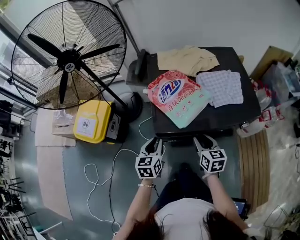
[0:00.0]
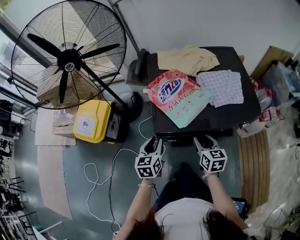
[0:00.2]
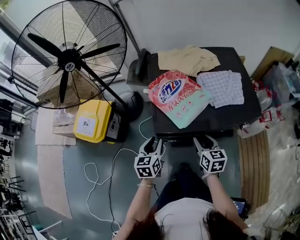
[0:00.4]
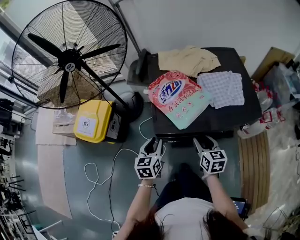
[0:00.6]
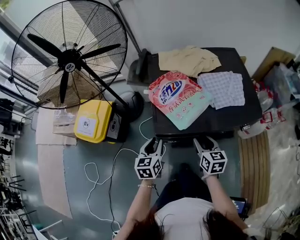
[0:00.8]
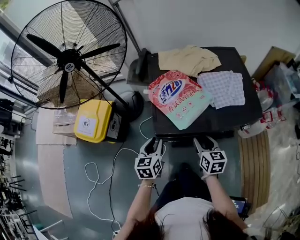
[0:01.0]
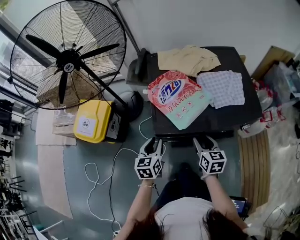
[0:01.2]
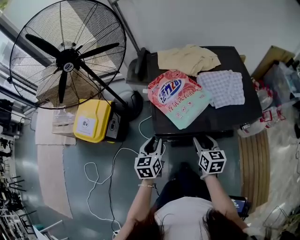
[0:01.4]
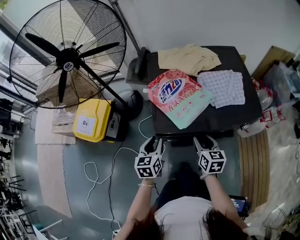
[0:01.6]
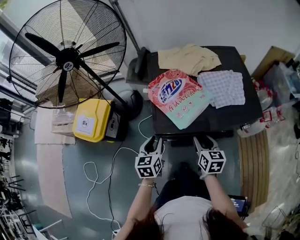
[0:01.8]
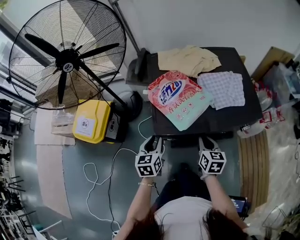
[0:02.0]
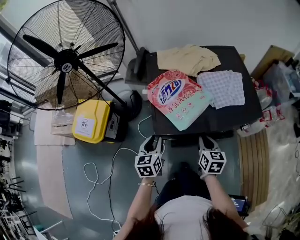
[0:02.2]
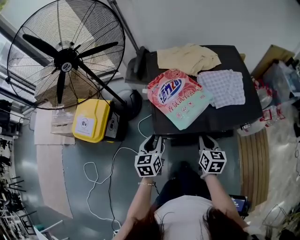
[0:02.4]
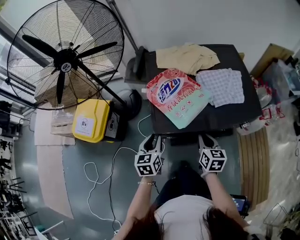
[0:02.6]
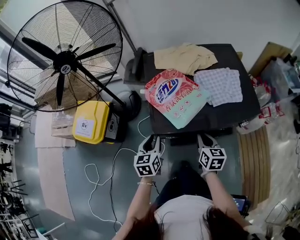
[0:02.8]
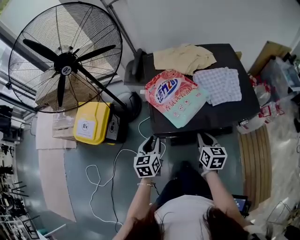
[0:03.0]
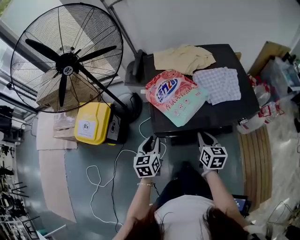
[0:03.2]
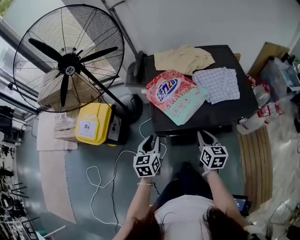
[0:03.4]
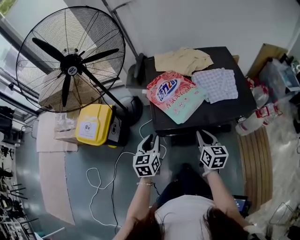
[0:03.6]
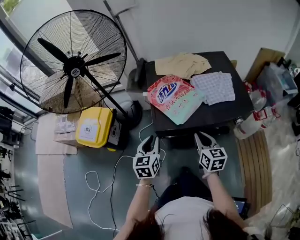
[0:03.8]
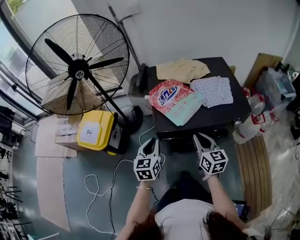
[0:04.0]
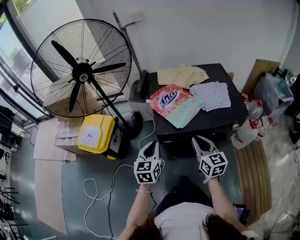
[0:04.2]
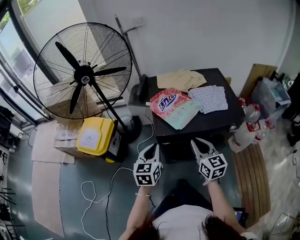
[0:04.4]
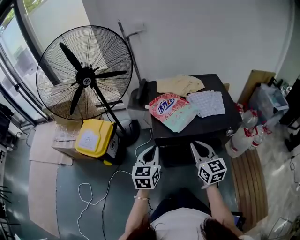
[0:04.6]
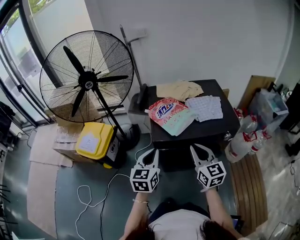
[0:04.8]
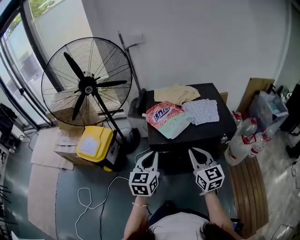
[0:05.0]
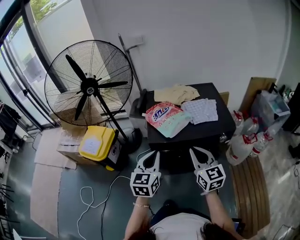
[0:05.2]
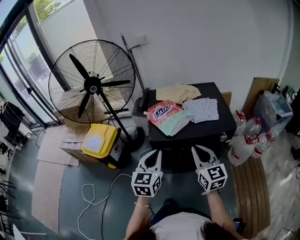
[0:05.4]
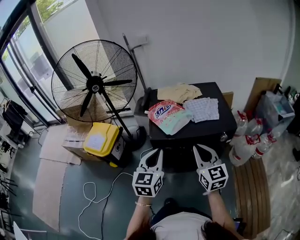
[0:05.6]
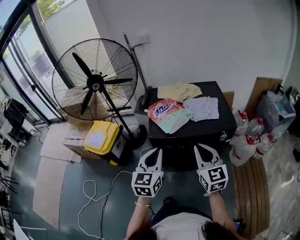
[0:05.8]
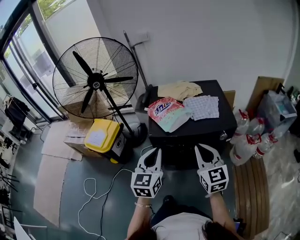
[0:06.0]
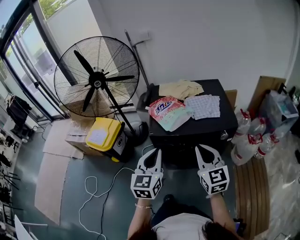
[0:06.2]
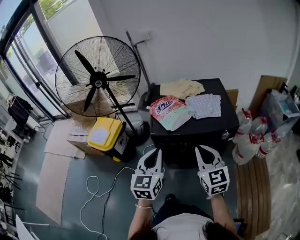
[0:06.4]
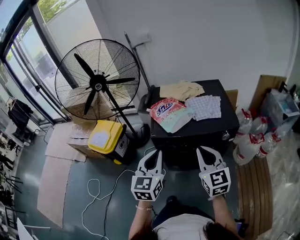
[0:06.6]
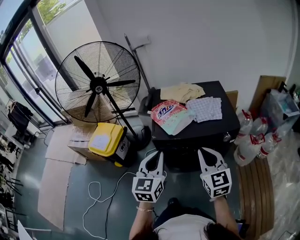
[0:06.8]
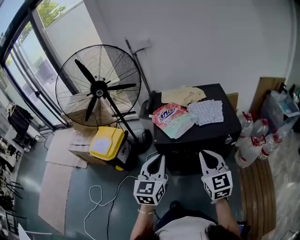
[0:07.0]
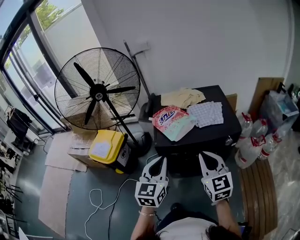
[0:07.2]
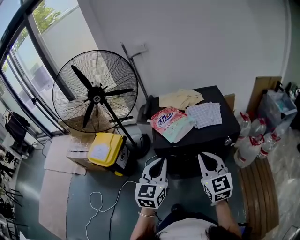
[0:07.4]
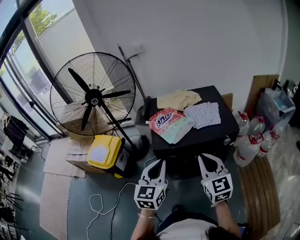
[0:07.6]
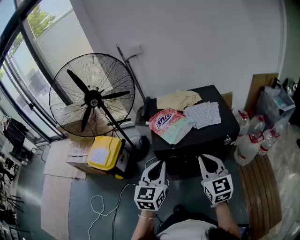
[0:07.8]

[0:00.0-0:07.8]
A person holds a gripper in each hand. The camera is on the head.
0.0 to 1.6 s: The two grippers keep their place.
1.6 to 3.2 s: The right gripper closes its fingers.
3.2 to 4.6 s: Both grippers travel together upward and backward, about 15 cm. The left gripper closes, while the right gripper rotates about 30 degrees.
4.6 to 6.2 s: The left gripper heads upward, backward and to the right, covering some 15 cm; the right gripper travels to the right, backward and upward by about 15 cm.
6.2 to 7.8 s: The grippers make only small movements.

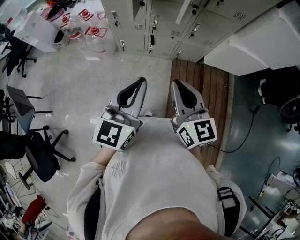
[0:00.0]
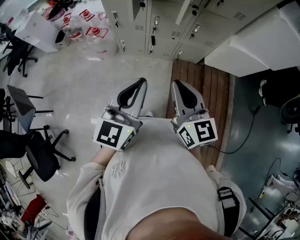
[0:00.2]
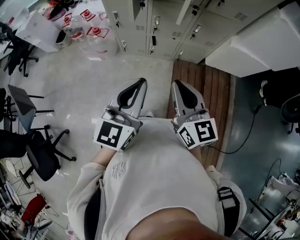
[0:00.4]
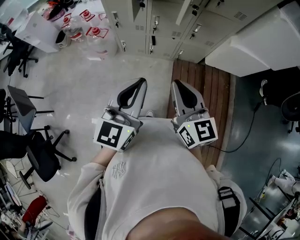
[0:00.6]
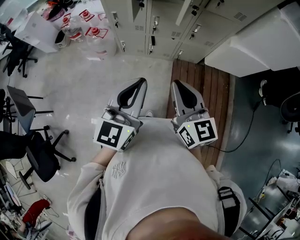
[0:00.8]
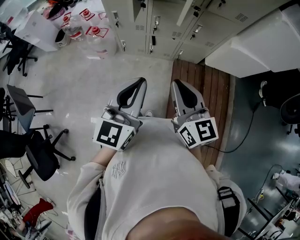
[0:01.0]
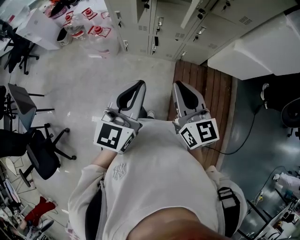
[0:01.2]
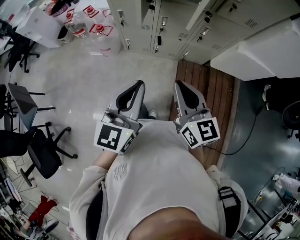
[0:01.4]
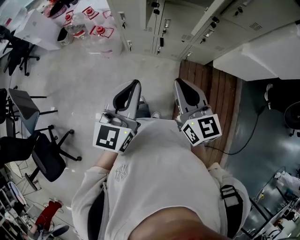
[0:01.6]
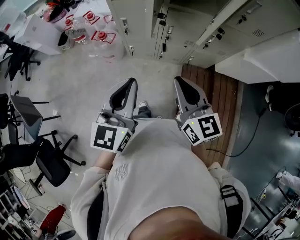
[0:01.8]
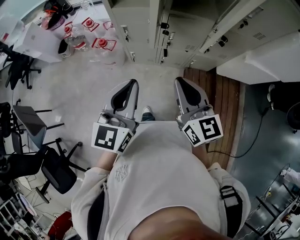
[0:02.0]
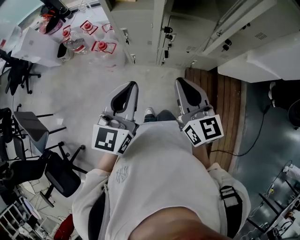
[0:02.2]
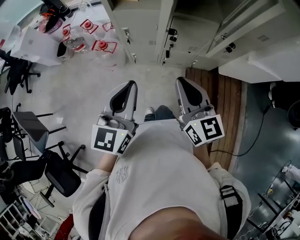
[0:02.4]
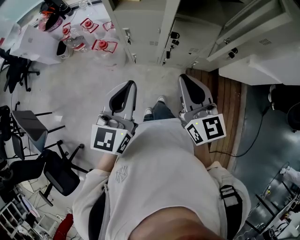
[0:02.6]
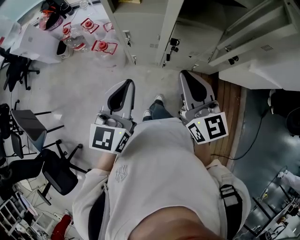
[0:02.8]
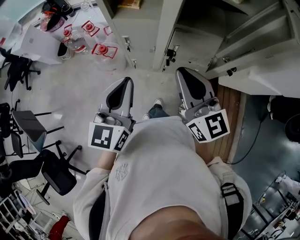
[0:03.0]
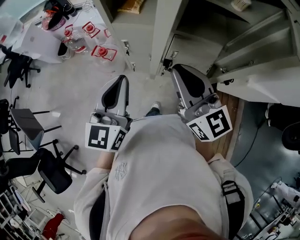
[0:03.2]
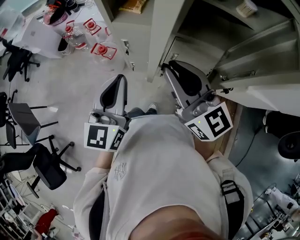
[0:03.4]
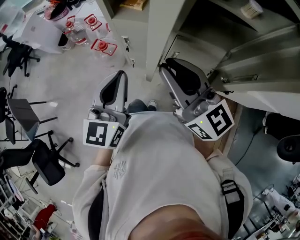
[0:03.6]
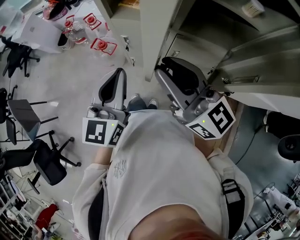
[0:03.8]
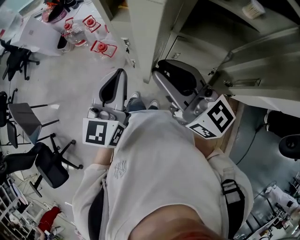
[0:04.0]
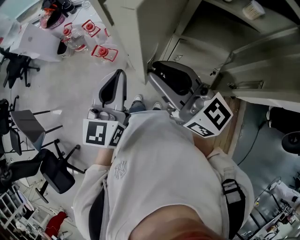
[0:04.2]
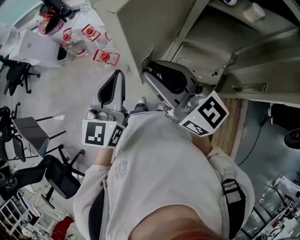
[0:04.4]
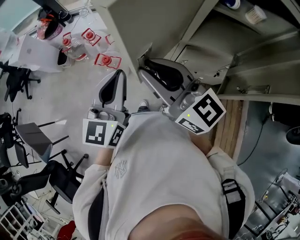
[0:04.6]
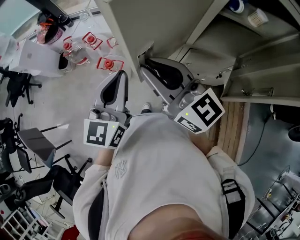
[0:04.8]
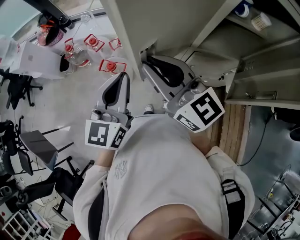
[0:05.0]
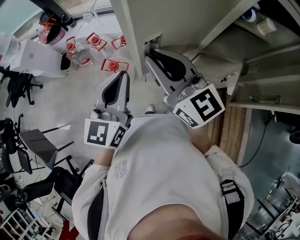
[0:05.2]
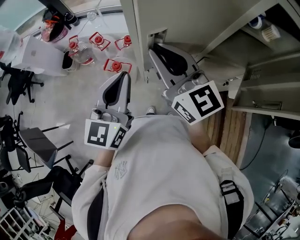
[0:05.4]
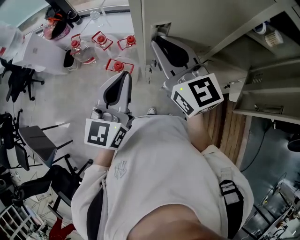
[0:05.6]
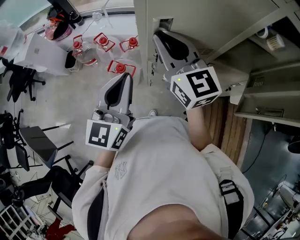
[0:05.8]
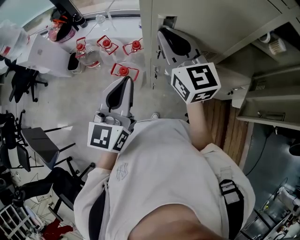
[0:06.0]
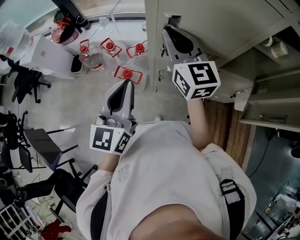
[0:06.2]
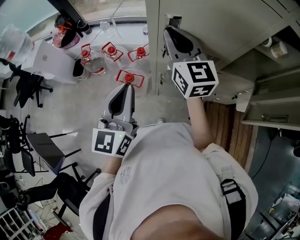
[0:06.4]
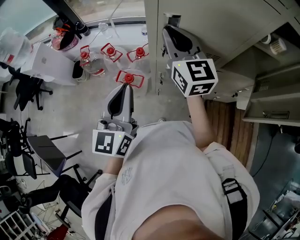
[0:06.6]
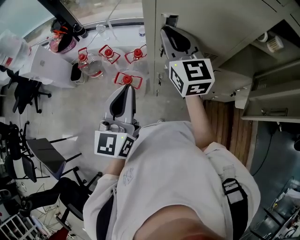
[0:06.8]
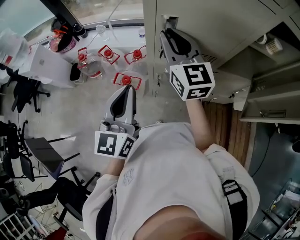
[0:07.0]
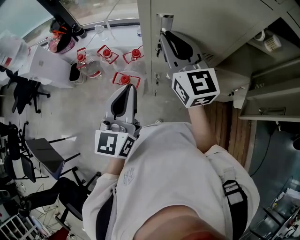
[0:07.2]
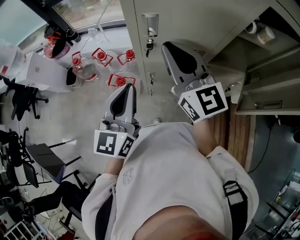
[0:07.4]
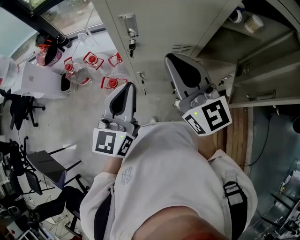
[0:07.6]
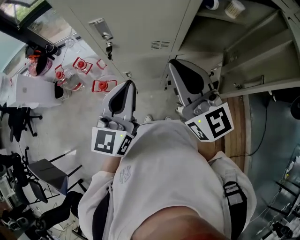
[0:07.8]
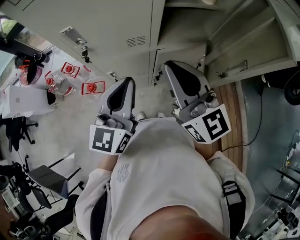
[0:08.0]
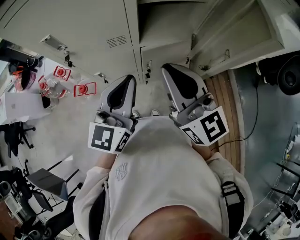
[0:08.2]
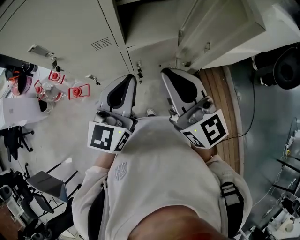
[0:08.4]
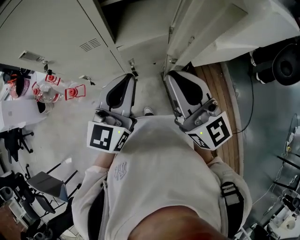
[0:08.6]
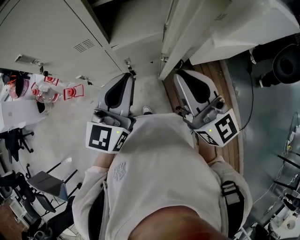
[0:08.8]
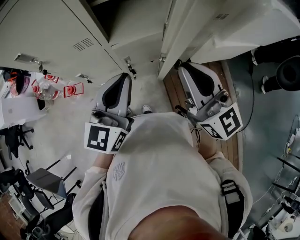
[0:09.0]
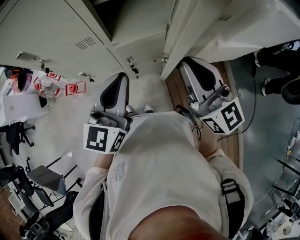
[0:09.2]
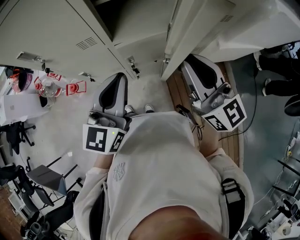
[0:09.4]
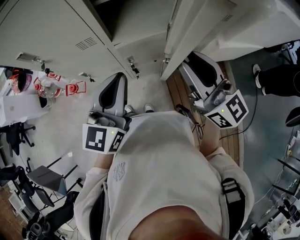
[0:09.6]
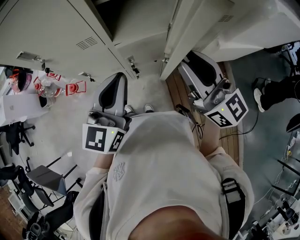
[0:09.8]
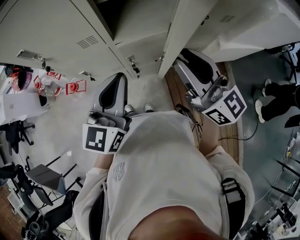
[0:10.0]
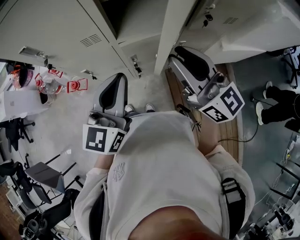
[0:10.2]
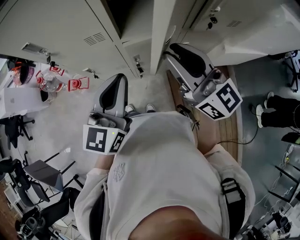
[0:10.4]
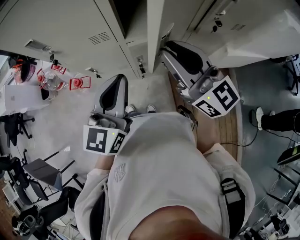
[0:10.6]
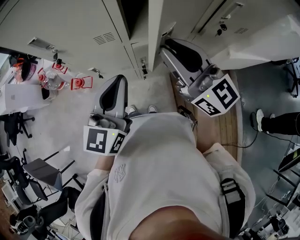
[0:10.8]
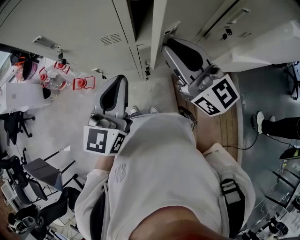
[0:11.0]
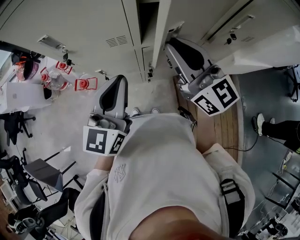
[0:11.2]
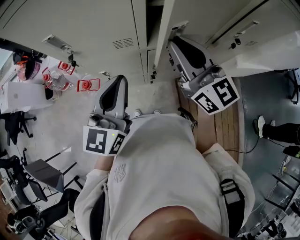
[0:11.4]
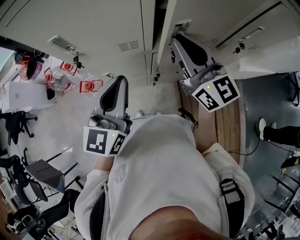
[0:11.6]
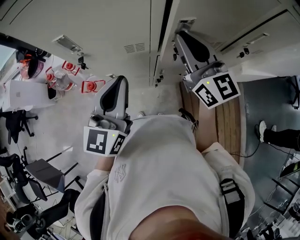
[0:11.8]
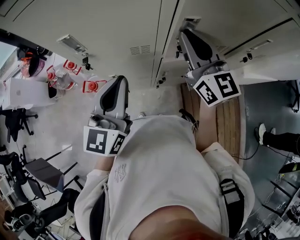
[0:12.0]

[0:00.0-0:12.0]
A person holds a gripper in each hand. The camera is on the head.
0.0 to 1.6 s: The left gripper goes roughly 10 cm forward and to the left. Meanwhile the right gripper travels forward by roughly 10 cm.
1.6 to 3.0 s: The two grippers go approximately 20 cm forward.
3.0 to 4.4 s: The right gripper is displaced forward and to the left by roughly 15 cm, and swivels about 20 degrees, while the left gripper is displaced forward by about 10 cm.
4.4 to 6.0 s: The left gripper goes approximately 15 cm to the left and forward; the right gripper shifts roughly 20 cm forward, and turns by roughly 30 degrees.
6.0 to 7.6 s: The right gripper shifts about 15 cm backward and to the right. Meanwhile the left gripper is displaced to the right by about 5 cm.
7.6 to 9.0 s: Both grippers move to the right, roughly 30 cm.
9.0 to 10.4 s: The right gripper travels forward and to the left by about 10 cm.
10.4 to 12.0 s: The left gripper shifts approximately 15 cm to the left and forward. The right gripper shifts roughly 20 cm forward and to the left.

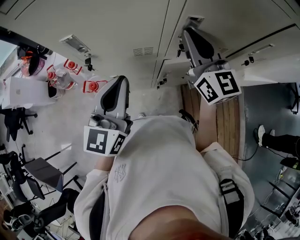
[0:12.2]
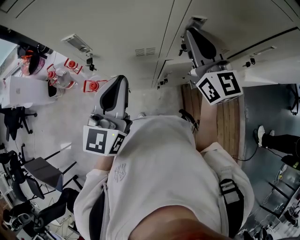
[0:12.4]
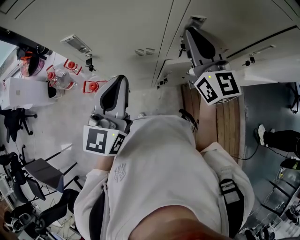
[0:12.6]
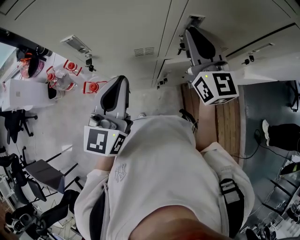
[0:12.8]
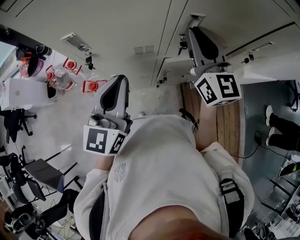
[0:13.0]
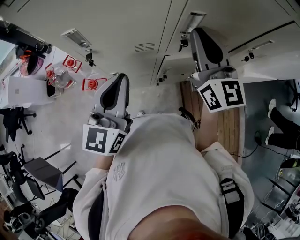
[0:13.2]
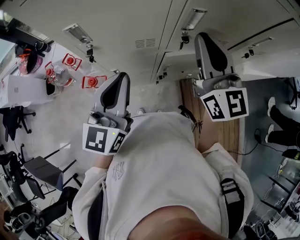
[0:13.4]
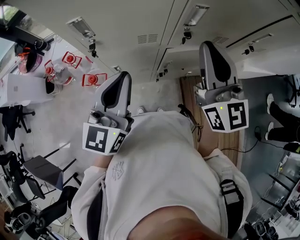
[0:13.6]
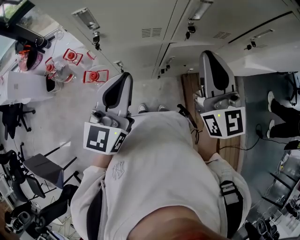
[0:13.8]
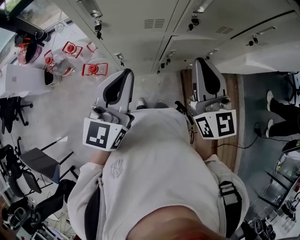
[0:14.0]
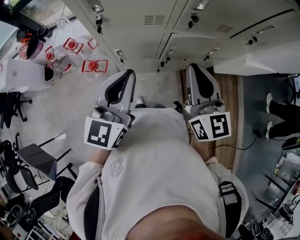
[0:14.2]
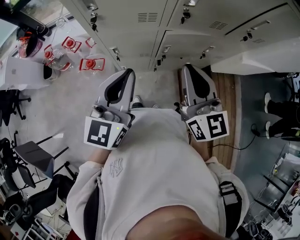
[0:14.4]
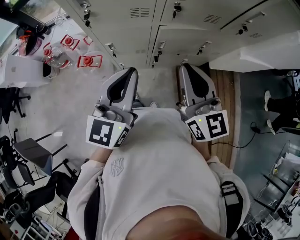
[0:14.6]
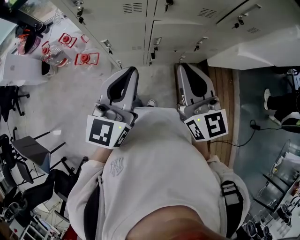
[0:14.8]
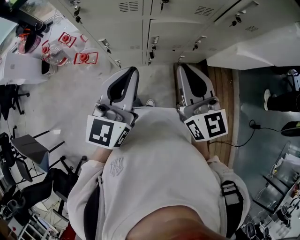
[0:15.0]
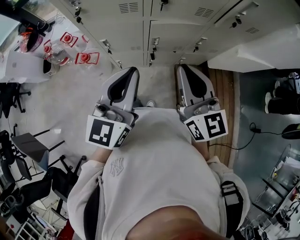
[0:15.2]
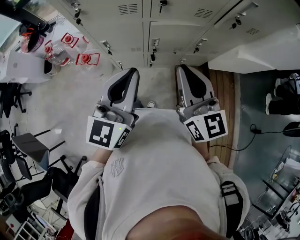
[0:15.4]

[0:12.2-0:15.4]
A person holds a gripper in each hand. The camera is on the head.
12.2 to 13.8 s: The left gripper is displaced backward by approximately 5 cm. The right gripper is displaced backward by some 15 cm.
13.8 to 15.4 s: The right gripper goes about 15 cm backward, downward and to the right. The left gripper shifts roughly 15 cm to the right and backward.

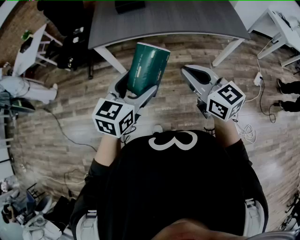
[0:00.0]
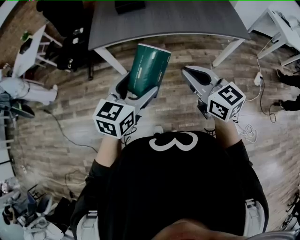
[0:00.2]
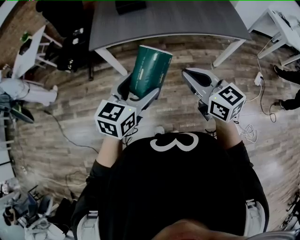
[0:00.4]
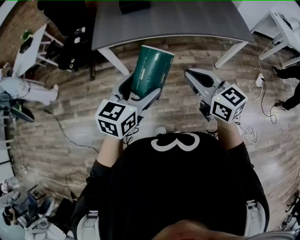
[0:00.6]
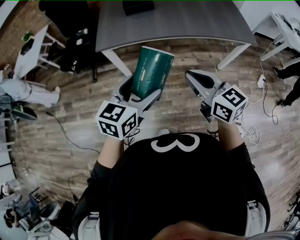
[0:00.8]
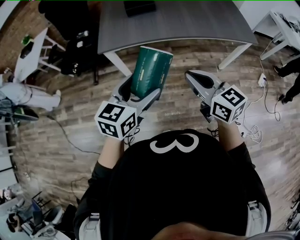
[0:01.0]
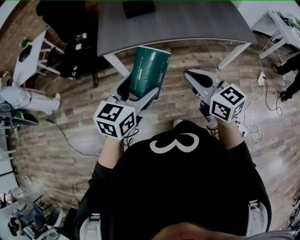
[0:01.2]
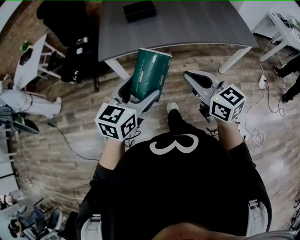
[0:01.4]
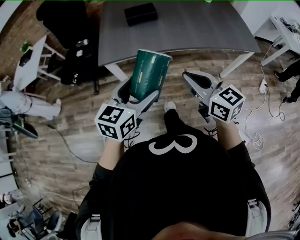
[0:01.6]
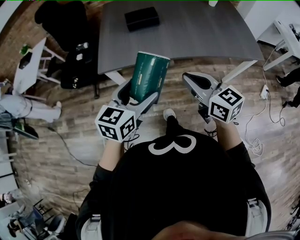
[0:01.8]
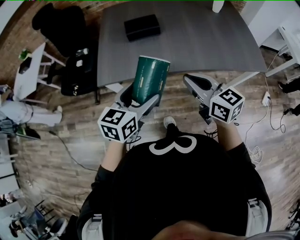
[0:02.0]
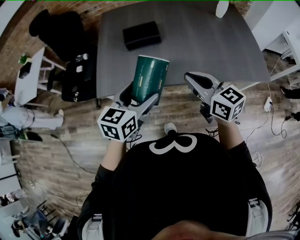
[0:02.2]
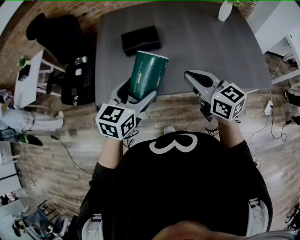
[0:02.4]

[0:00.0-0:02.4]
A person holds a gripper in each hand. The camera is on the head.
0.0 to 1.2 s: The grippers both shift to the left and forward by approximately 10 cm.
1.2 to 2.4 s: The grippers both shift forward by approximately 35 cm.
